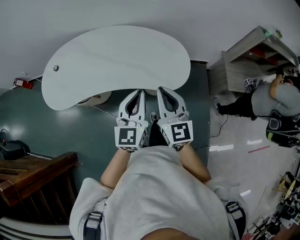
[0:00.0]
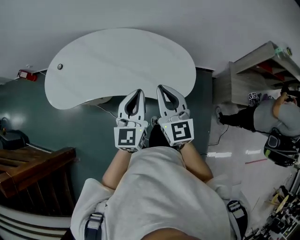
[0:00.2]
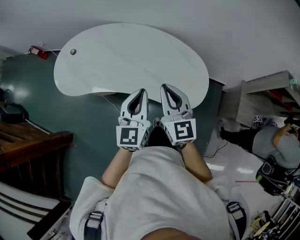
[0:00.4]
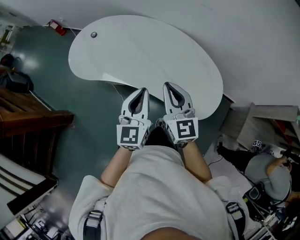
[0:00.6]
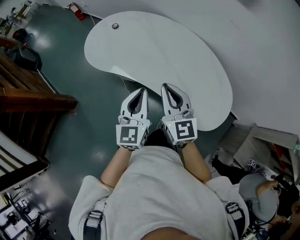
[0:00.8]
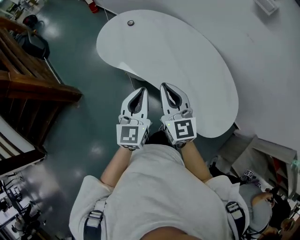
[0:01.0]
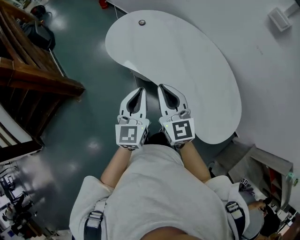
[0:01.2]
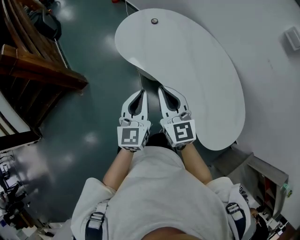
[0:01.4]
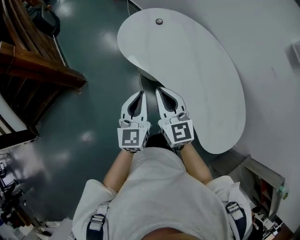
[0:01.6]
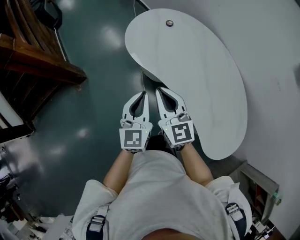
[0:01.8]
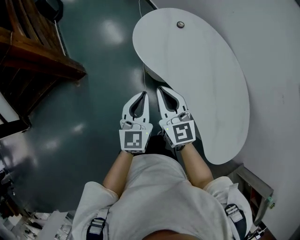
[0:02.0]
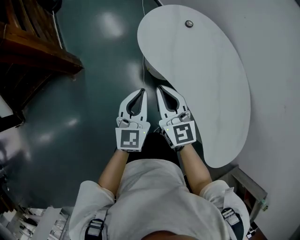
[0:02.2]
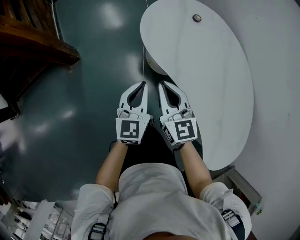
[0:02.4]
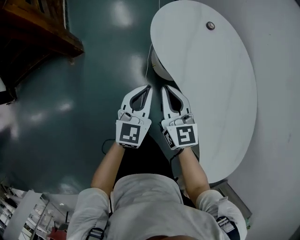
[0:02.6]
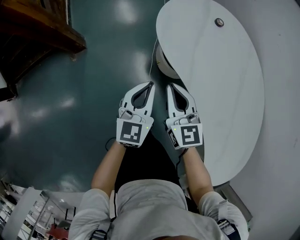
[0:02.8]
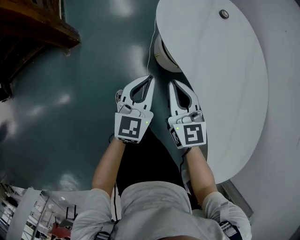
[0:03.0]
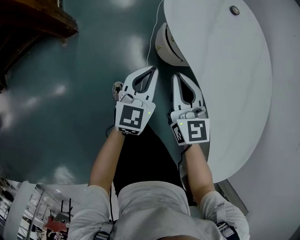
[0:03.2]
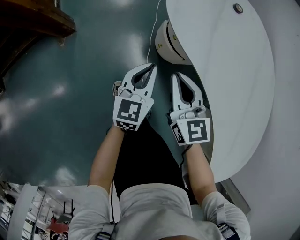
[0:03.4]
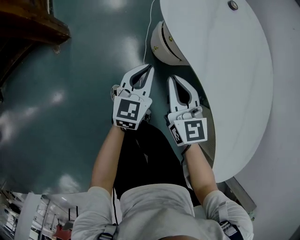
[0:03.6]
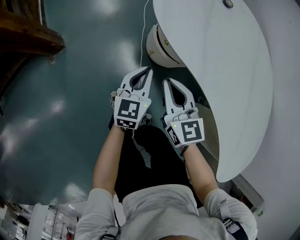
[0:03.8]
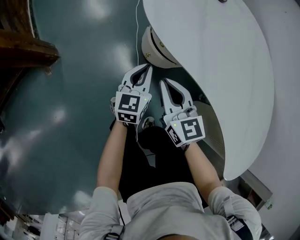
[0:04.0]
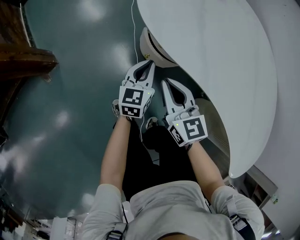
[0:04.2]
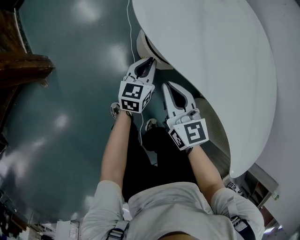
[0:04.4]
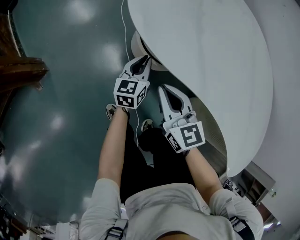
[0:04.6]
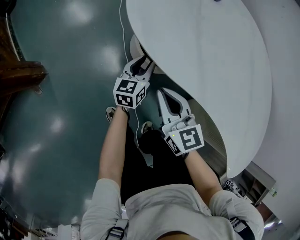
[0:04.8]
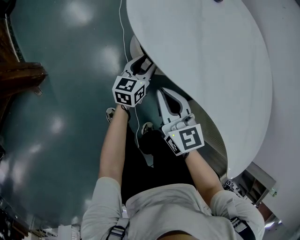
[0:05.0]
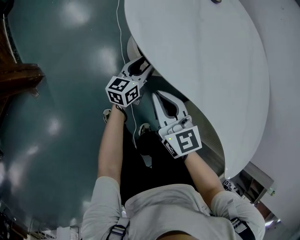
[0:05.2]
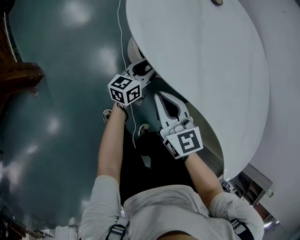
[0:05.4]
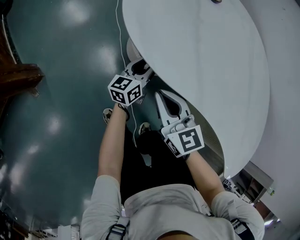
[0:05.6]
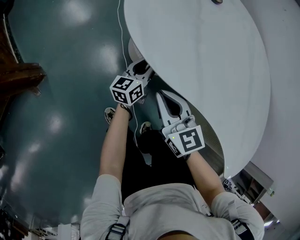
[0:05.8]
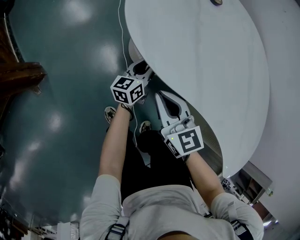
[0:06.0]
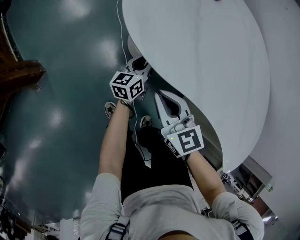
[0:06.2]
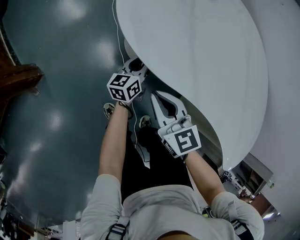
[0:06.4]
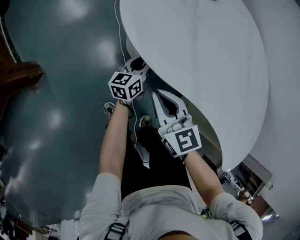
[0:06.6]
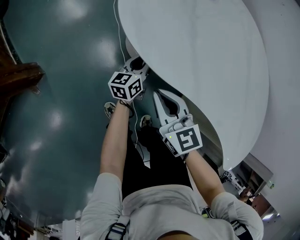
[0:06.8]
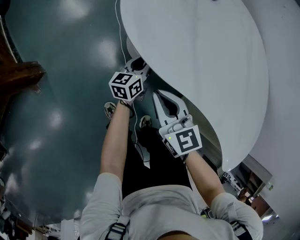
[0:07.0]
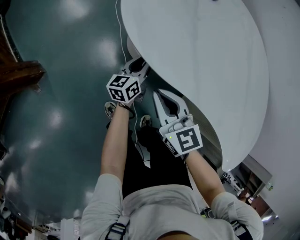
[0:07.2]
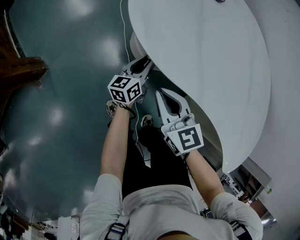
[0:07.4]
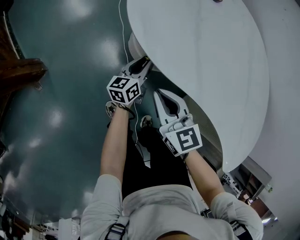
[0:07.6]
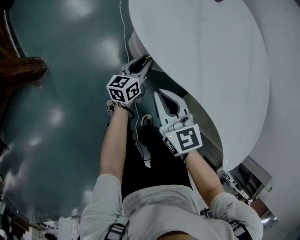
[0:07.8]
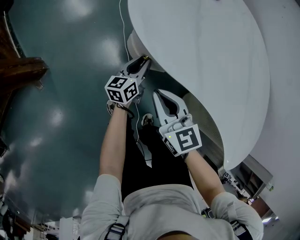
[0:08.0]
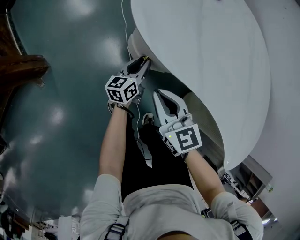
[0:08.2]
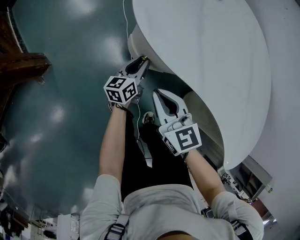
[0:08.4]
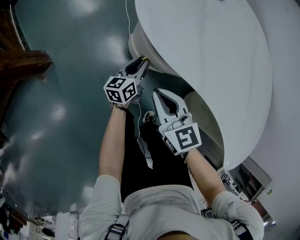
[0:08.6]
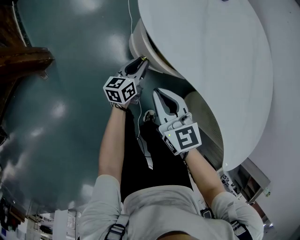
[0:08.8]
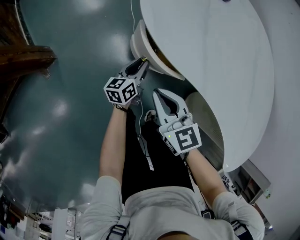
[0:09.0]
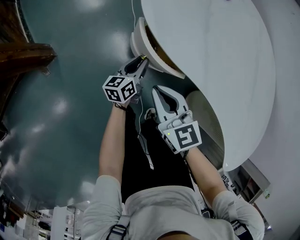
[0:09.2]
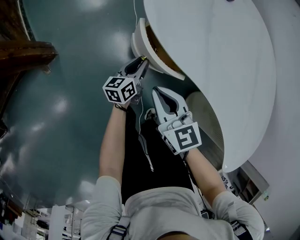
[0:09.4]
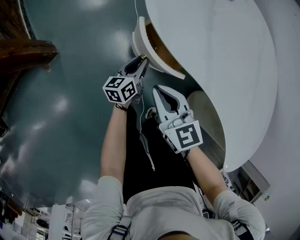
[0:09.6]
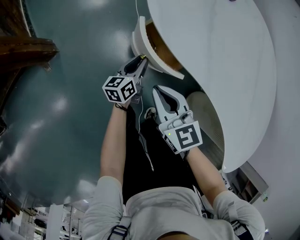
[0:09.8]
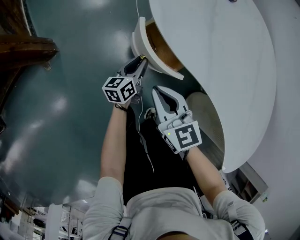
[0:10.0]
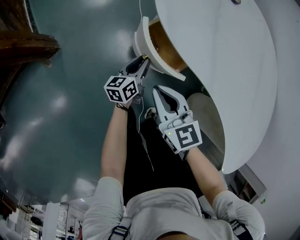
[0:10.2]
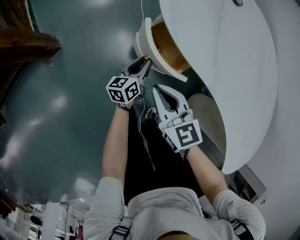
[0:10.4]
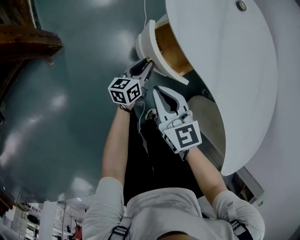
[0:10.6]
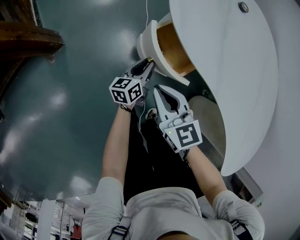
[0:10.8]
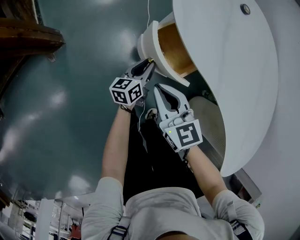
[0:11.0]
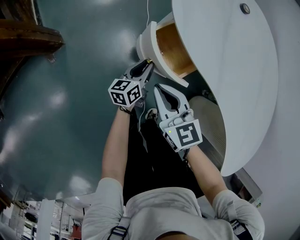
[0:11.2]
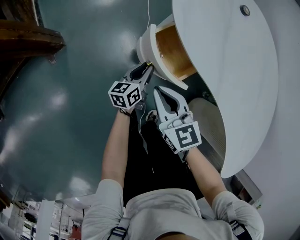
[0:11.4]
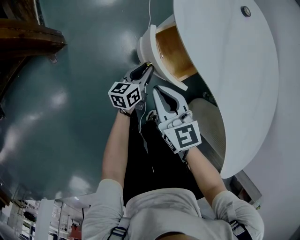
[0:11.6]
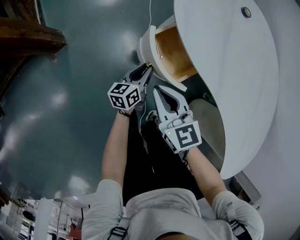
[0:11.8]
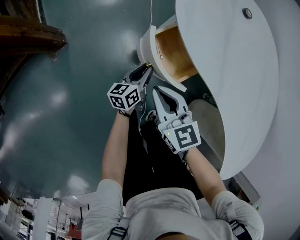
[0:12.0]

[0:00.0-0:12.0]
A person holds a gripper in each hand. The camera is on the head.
0:00.0 to 0:01.6: The left gripper shifts by approximately 35 cm, and rotates about 60 degrees; the right gripper changes place by roughly 35 cm, and swivels approximately 60 degrees.
0:01.6 to 0:03.0: The two grippers go some 30 cm downward, forward and to the left.
0:03.0 to 0:04.4: The left gripper goes some 25 cm downward and forward, and turns by roughly 20 degrees; the right gripper goes approximately 15 cm downward.
0:04.4 to 0:06.0: The left gripper moves forward, roughly 5 cm, rotates some 20 degrees, and opens.
0:06.0 to 0:07.6: There are only small adjustments of the grippers.
0:07.6 to 0:09.0: The left gripper moves roughly 5 cm.
0:09.0 to 0:10.4: There are only small adjustments of the grippers.
0:10.4 to 0:12.0: There are only small adjustments of the grippers.

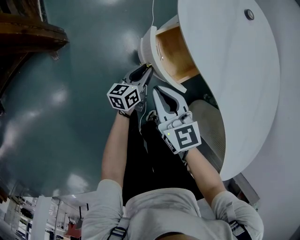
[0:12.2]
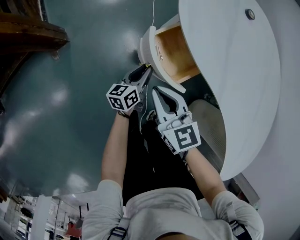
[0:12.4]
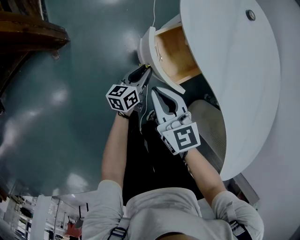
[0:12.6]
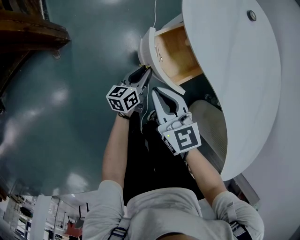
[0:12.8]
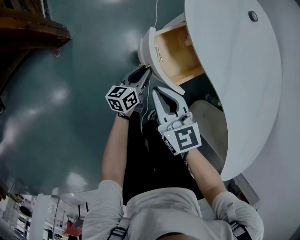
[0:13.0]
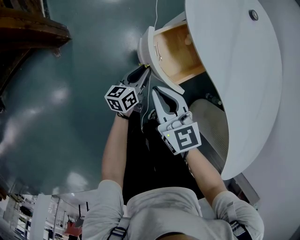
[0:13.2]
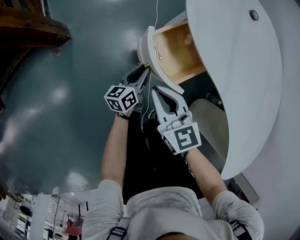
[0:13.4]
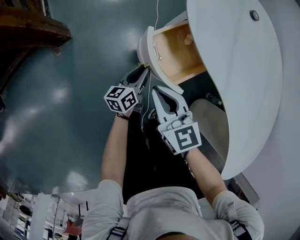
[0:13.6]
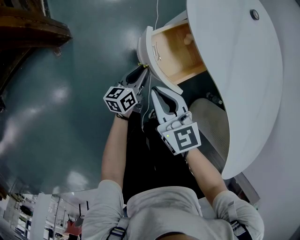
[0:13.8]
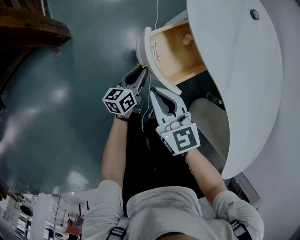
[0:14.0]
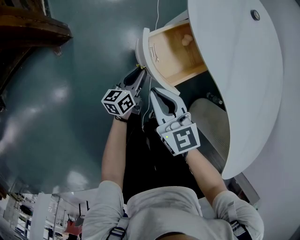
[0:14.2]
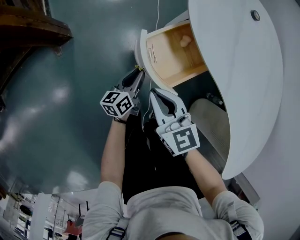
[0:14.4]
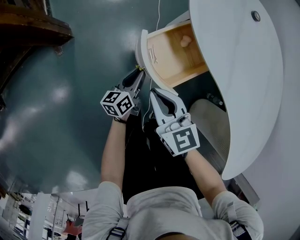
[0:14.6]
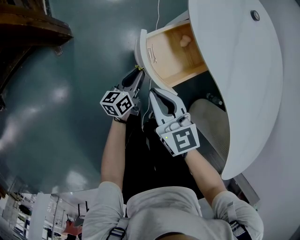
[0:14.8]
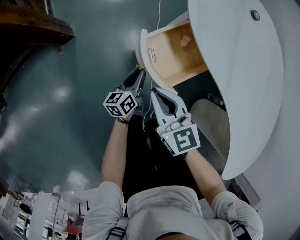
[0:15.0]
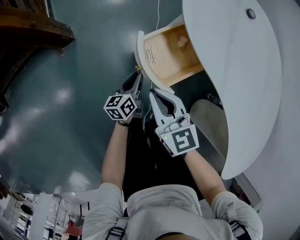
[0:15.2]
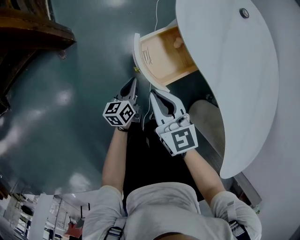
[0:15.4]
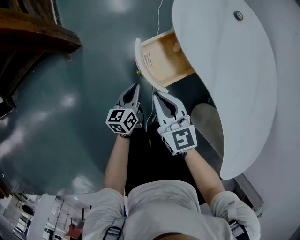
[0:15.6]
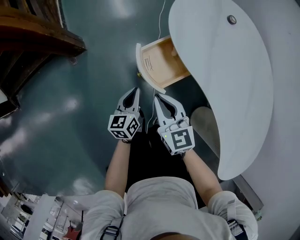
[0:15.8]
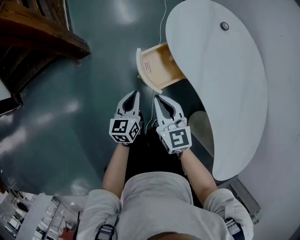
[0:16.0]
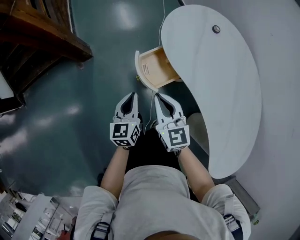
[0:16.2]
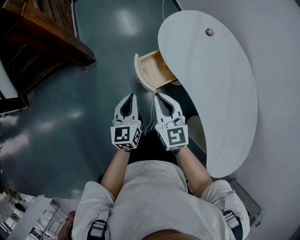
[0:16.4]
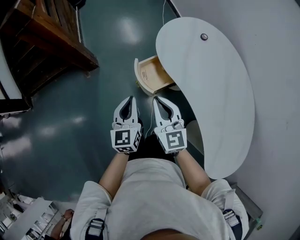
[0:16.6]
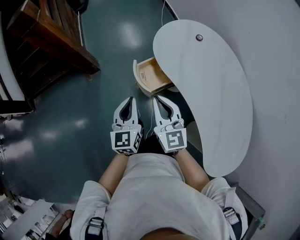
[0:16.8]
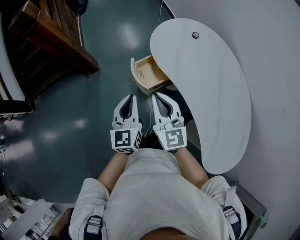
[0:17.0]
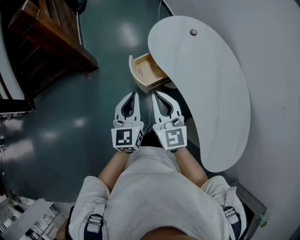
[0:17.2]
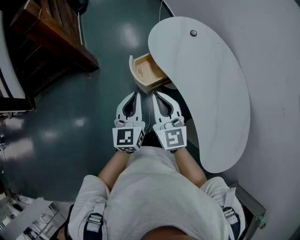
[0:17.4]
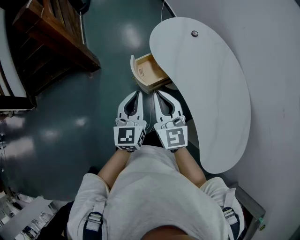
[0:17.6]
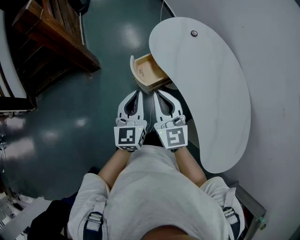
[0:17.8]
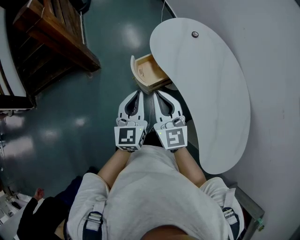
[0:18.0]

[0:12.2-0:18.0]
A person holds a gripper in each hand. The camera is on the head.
0:12.2 to 0:13.6: There are only small adjustments of the grippers.
0:13.6 to 0:15.0: The grippers make only small movements.
0:15.0 to 0:16.6: Both grippers move upward, approximately 35 cm. The left gripper swivels approximately 40 degrees.
0:16.6 to 0:18.0: The left gripper travels upward, to the right and backward by roughly 15 cm. Meanwhile the right gripper is displaced upward and backward by roughly 10 cm.

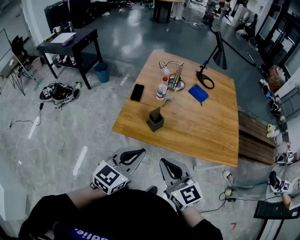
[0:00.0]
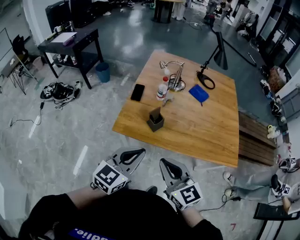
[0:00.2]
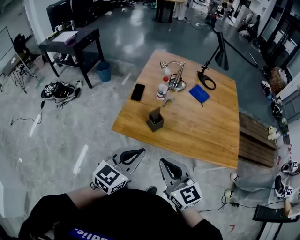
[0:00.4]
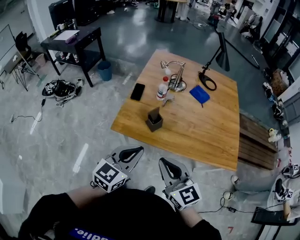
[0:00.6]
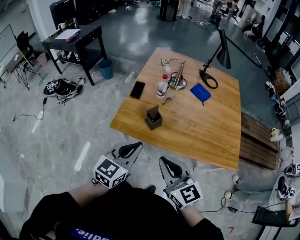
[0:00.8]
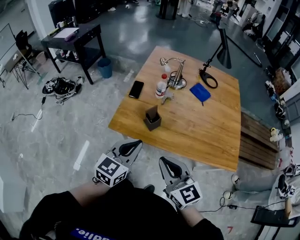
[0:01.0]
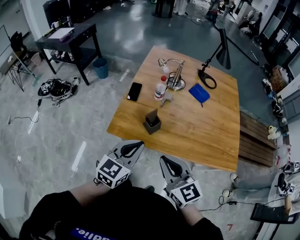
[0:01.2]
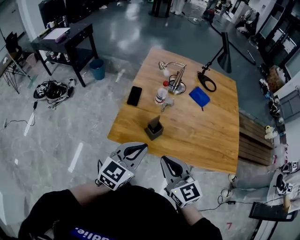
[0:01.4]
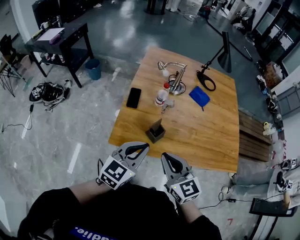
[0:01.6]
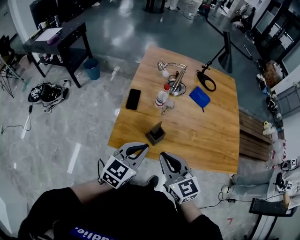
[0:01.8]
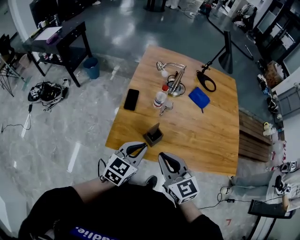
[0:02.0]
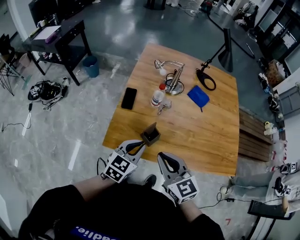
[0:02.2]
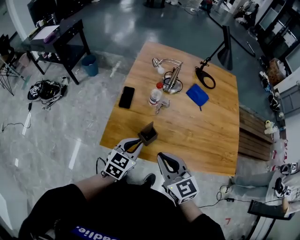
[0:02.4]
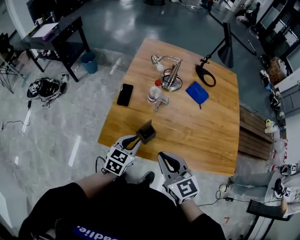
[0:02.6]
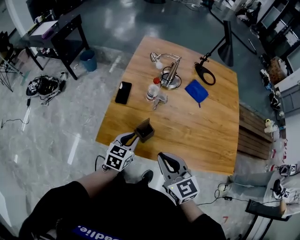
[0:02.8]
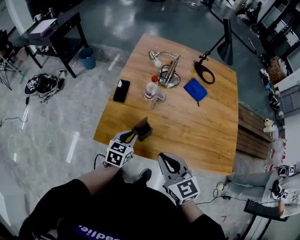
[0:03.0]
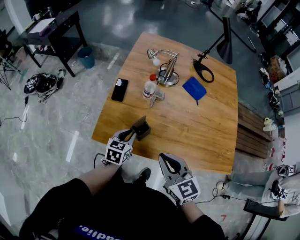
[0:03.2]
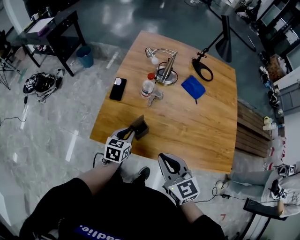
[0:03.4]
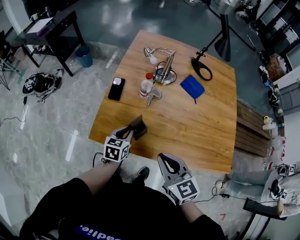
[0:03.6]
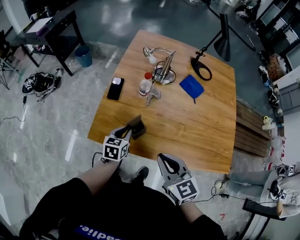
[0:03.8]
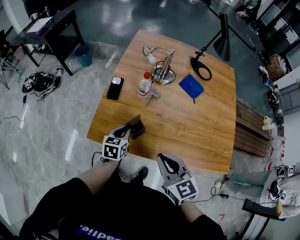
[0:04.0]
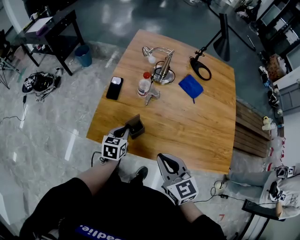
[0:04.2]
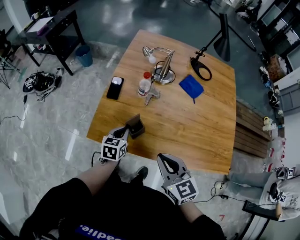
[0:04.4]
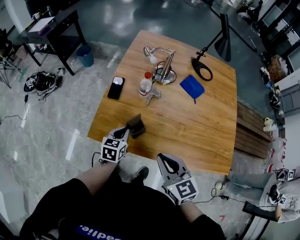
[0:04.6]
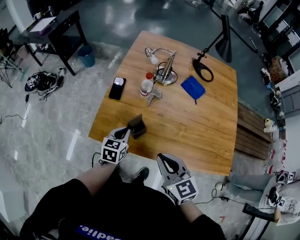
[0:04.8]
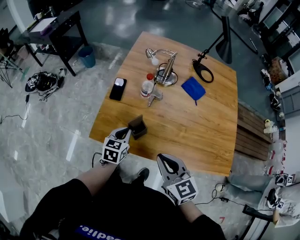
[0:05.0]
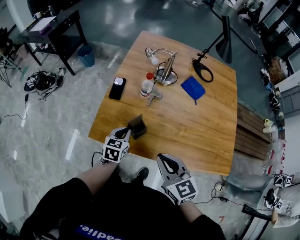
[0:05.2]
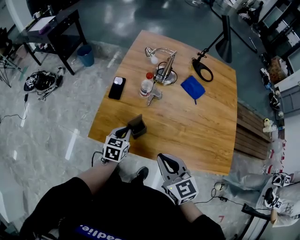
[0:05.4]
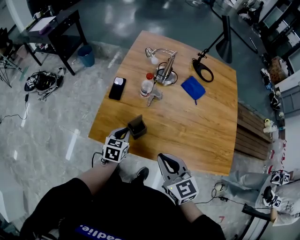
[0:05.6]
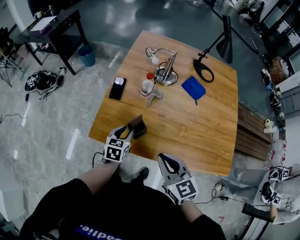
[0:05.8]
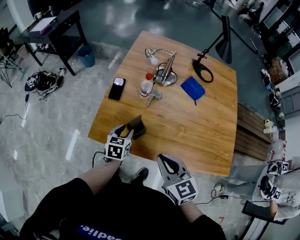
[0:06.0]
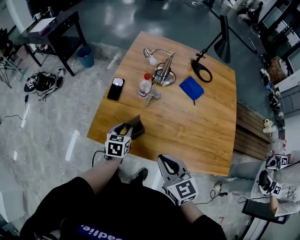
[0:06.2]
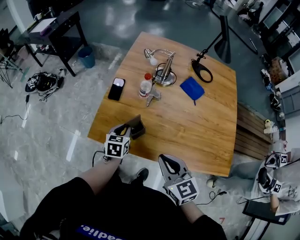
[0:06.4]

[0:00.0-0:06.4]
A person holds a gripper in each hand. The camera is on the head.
0:00.0 to 0:01.6: Both grippers move forward, some 15 cm.
0:01.6 to 0:03.2: The left gripper moves downward and forward, some 20 cm, and swivels roughly 30 degrees. The right gripper goes about 10 cm to the right.
0:03.2 to 0:06.4: The grippers move only a little.
